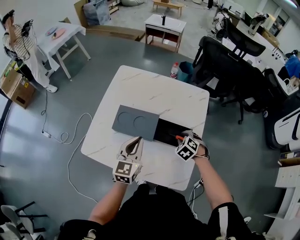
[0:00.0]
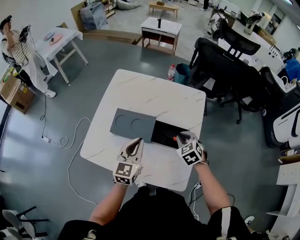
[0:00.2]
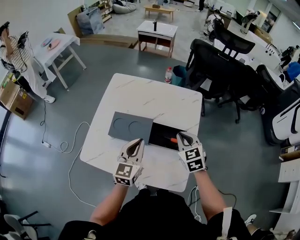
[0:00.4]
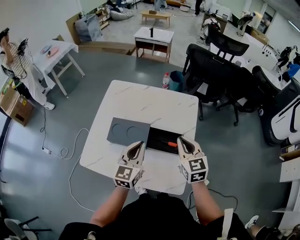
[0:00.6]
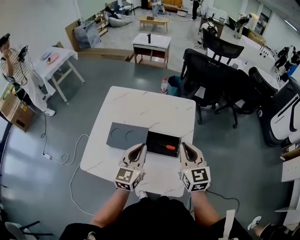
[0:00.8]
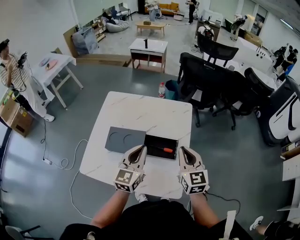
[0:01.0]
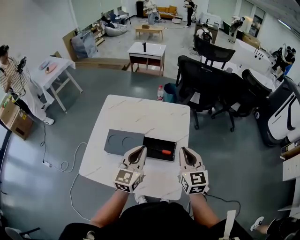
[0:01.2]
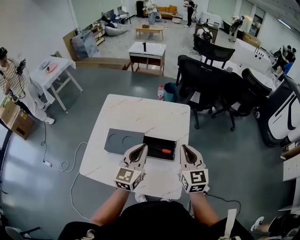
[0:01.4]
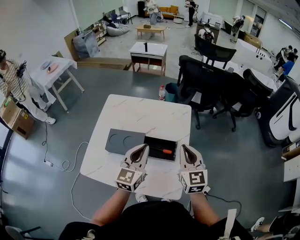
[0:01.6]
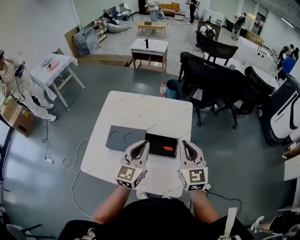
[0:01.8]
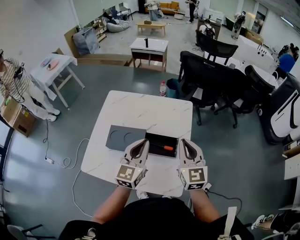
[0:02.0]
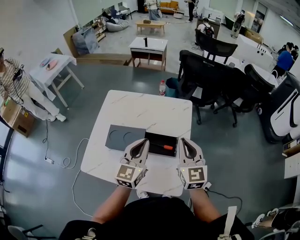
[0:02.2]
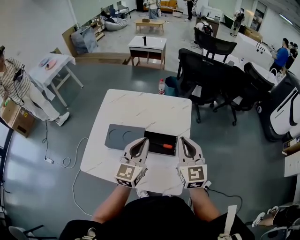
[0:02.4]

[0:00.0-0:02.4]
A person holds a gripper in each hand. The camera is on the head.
0:00.0 to 0:01.2: The right gripper moves upward, approximately 25 cm, tips its fingers upward by approximately 50 degrees, and closes its fingers. Meanwhile the left gripper heads to the right and upward, covering approximately 15 cm.
0:01.2 to 0:02.4: The grippers stay close to where they were, moving slightly.

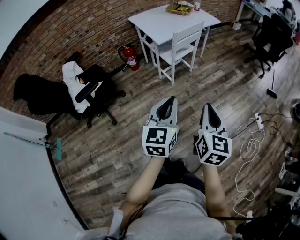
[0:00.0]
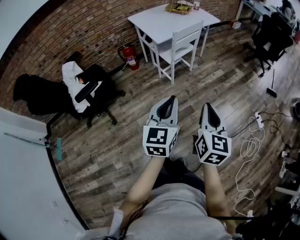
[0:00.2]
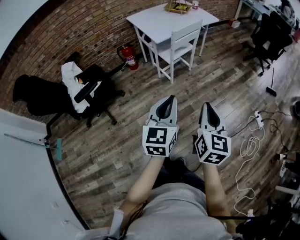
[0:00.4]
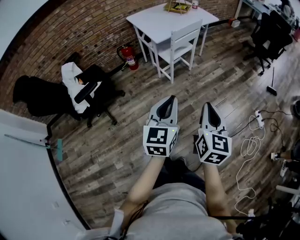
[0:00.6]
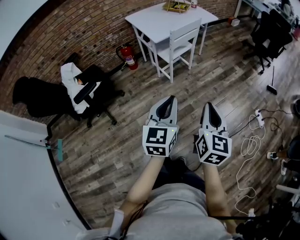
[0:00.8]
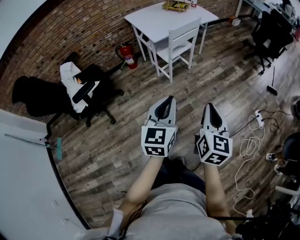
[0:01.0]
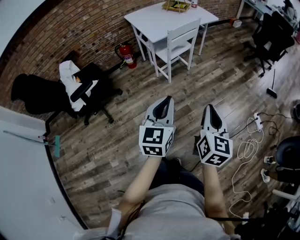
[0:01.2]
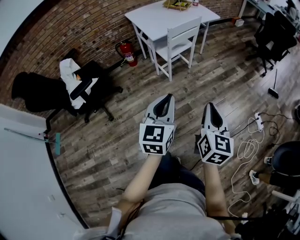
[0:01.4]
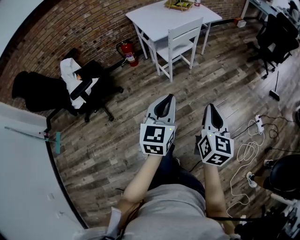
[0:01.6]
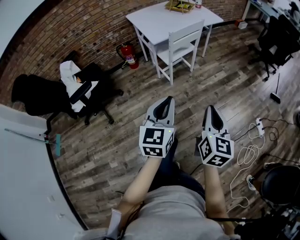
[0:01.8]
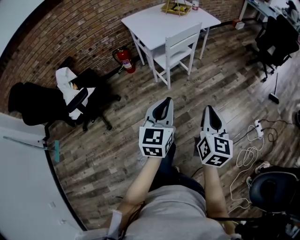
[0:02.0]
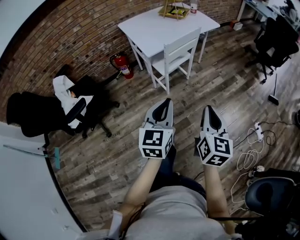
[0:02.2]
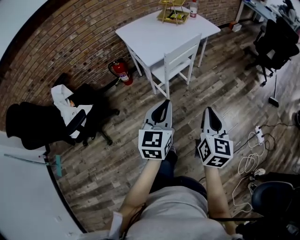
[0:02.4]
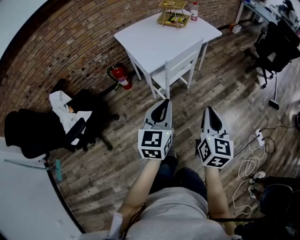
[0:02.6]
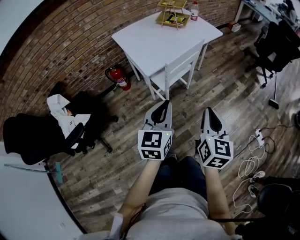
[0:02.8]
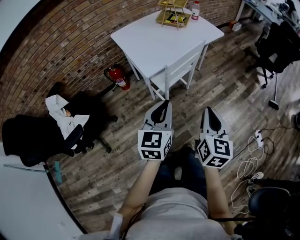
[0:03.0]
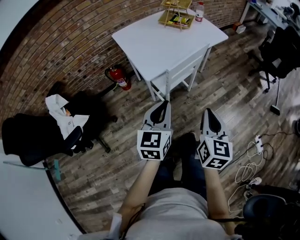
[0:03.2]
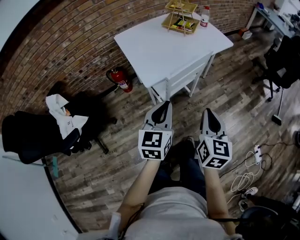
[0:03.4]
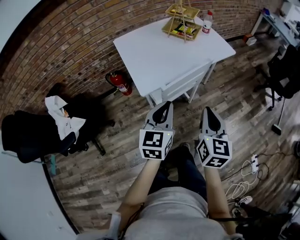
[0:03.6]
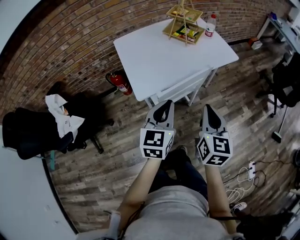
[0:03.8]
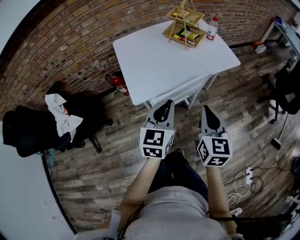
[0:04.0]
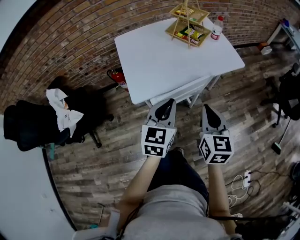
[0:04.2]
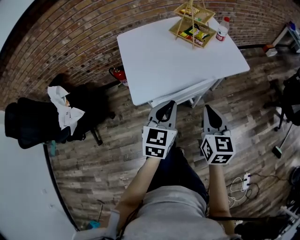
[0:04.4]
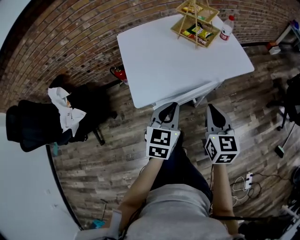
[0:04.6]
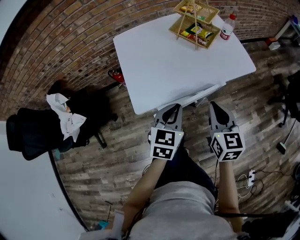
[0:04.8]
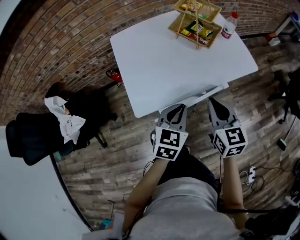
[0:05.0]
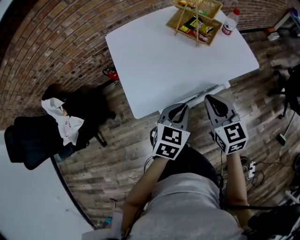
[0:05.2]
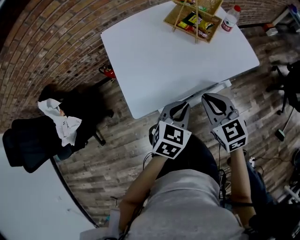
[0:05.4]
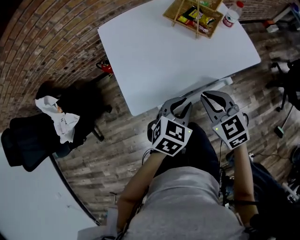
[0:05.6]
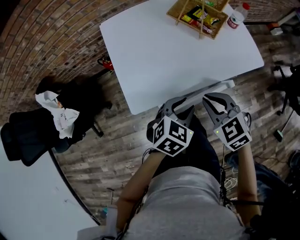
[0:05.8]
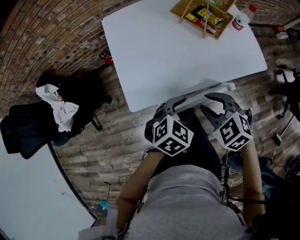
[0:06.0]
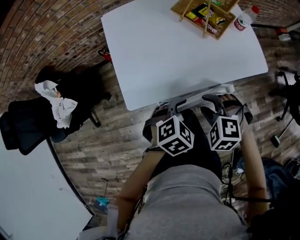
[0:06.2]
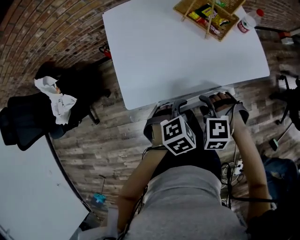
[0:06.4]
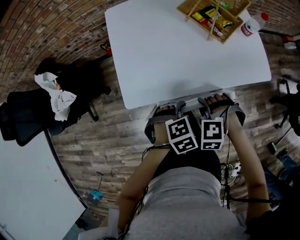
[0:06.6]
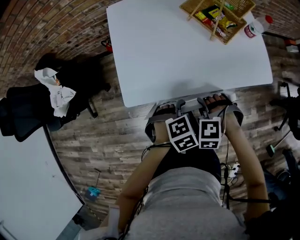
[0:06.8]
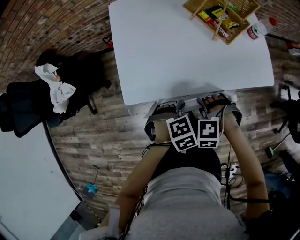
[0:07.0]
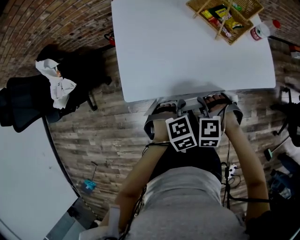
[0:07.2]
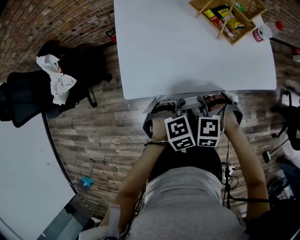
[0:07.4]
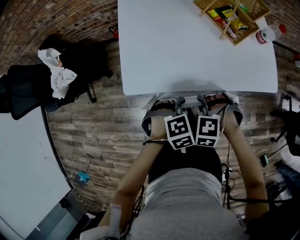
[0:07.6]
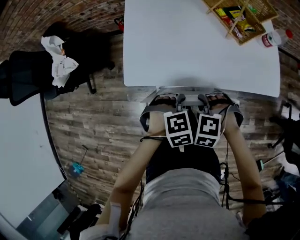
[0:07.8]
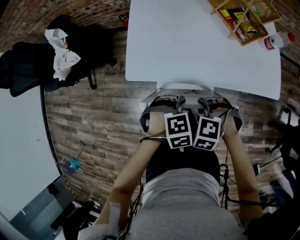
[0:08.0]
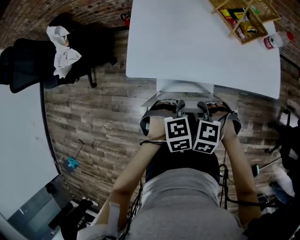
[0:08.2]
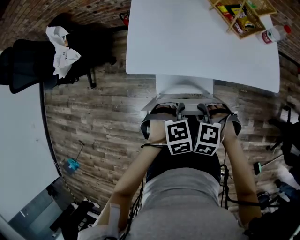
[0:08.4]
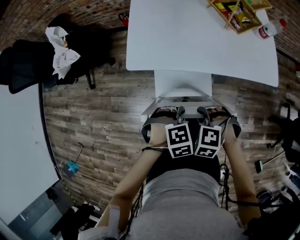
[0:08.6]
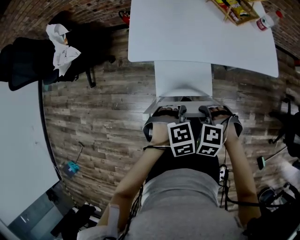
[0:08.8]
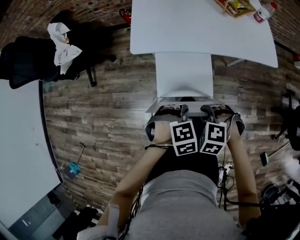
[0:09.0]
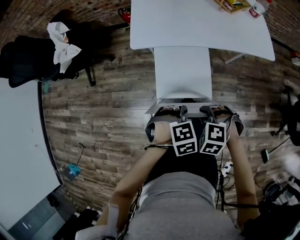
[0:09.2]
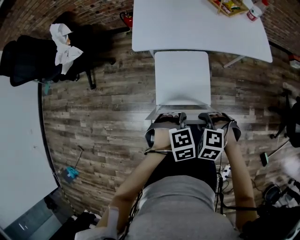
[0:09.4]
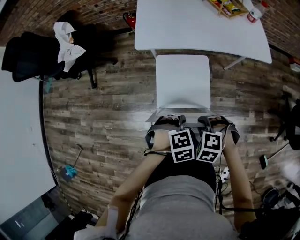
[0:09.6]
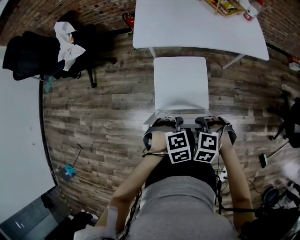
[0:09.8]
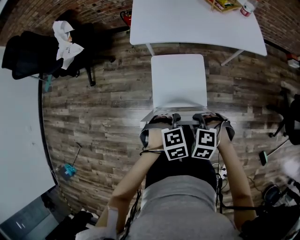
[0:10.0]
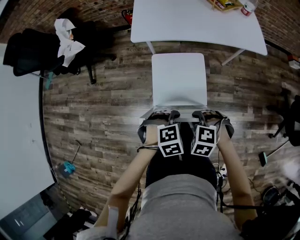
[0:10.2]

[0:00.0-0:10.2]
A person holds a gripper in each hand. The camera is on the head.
0:00.0 to 0:01.4: The grippers both shift to the right by some 5 cm.
0:01.4 to 0:03.0: Both grippers travel together forward, some 30 cm.
0:03.0 to 0:04.4: The left gripper is displaced forward and to the right by about 30 cm. Meanwhile the right gripper travels forward by about 30 cm, and swivels roughly 30 degrees.
0:04.4 to 0:05.8: The right gripper heads forward, downward and to the left, covering about 15 cm, and turns by roughly 50 degrees; the left gripper shifts approximately 15 cm forward and downward, swivels about 30 degrees, and opens.
0:05.8 to 0:07.2: Both grippers move downward, some 10 cm. The left gripper rotates roughly 30 degrees. Meanwhile the right gripper rolls counterclockwise, seen from behind, by roughly 60 degrees, and opens its fingers.
0:07.2 to 0:08.8: The left gripper ends up roughly 20 cm from where it was, while the right gripper moves some 20 cm.
0:08.8 to 0:10.2: The left gripper moves approximately 15 cm; the right gripper changes place by roughly 15 cm.

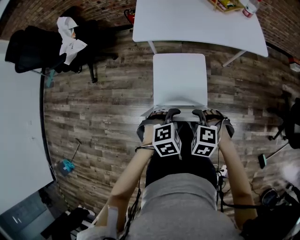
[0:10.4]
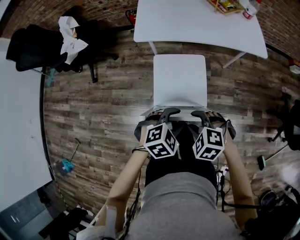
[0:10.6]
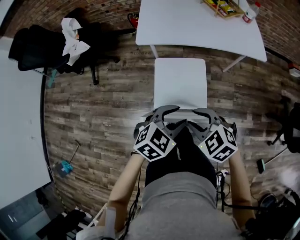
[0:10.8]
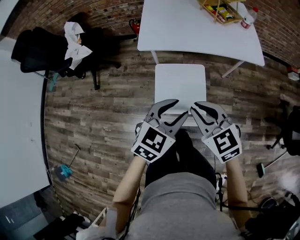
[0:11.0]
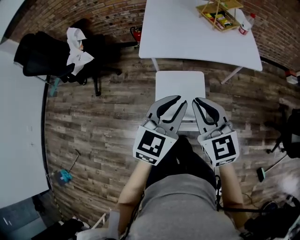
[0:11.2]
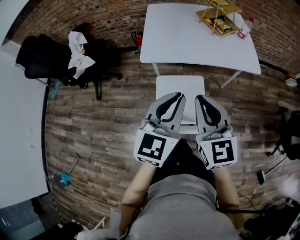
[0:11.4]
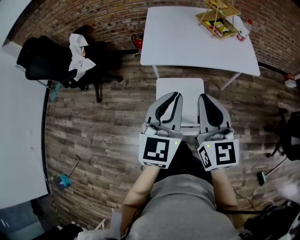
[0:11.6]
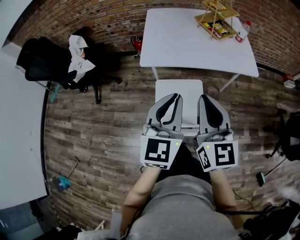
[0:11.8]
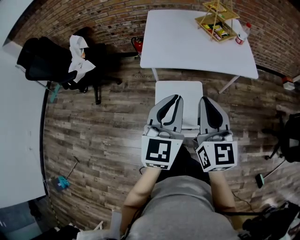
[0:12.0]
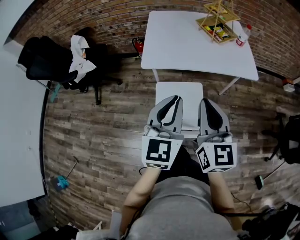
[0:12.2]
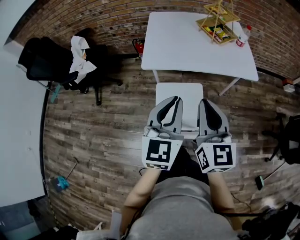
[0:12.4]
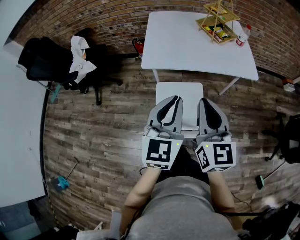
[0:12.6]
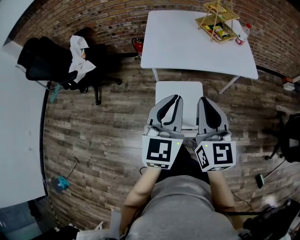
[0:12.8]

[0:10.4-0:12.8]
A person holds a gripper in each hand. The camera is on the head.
0:10.4 to 0:11.6: The two grippers go about 30 cm upward and forward. The right gripper tips its fingers upward by about 70 degrees, and closes its fingers, while the left gripper tilts its fingers approximately 60 degrees upward, and closes up.
0:11.6 to 0:12.8: Both grippers stay put.

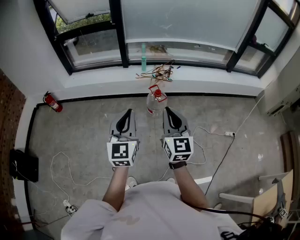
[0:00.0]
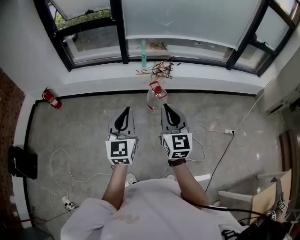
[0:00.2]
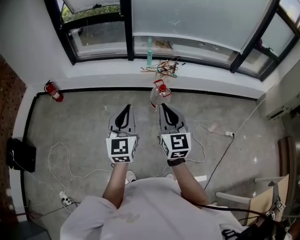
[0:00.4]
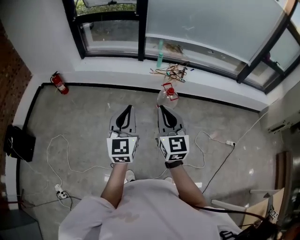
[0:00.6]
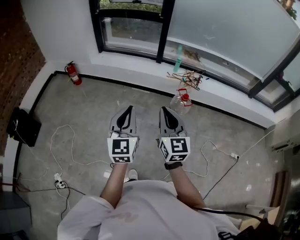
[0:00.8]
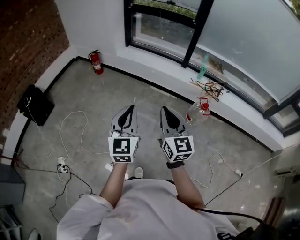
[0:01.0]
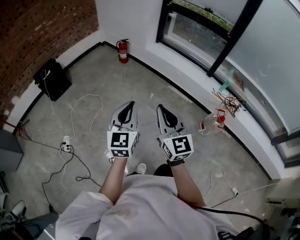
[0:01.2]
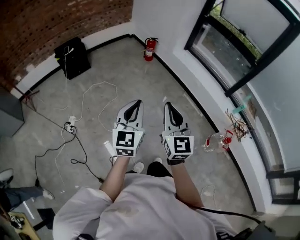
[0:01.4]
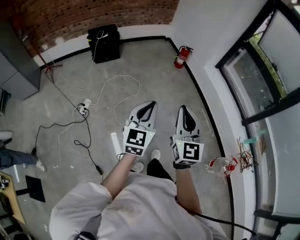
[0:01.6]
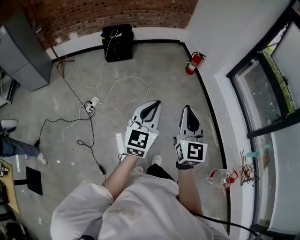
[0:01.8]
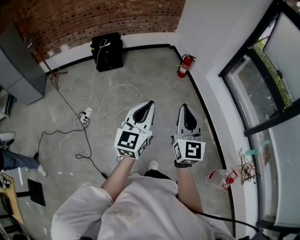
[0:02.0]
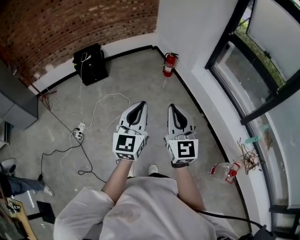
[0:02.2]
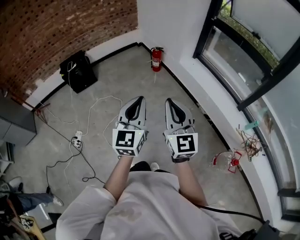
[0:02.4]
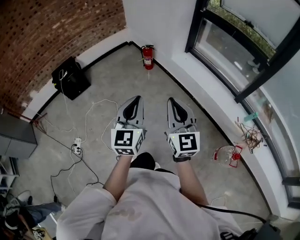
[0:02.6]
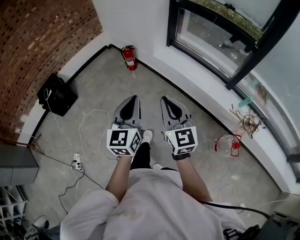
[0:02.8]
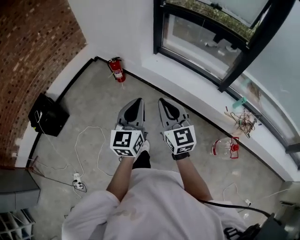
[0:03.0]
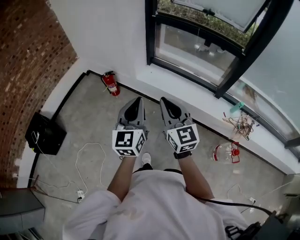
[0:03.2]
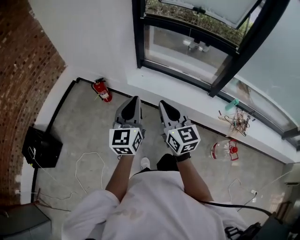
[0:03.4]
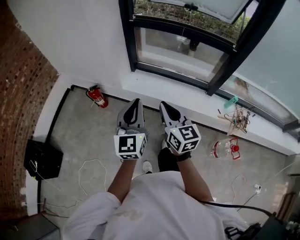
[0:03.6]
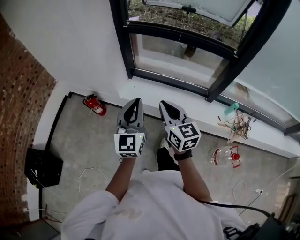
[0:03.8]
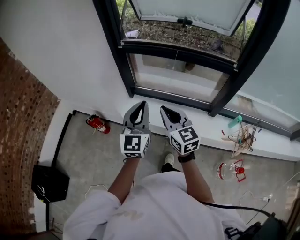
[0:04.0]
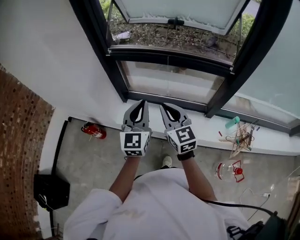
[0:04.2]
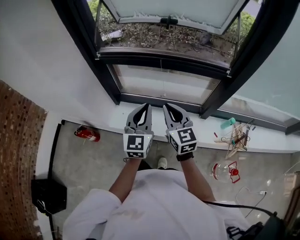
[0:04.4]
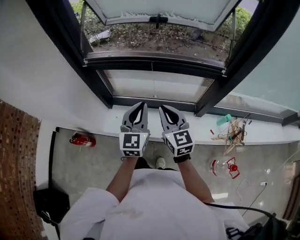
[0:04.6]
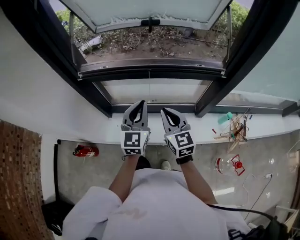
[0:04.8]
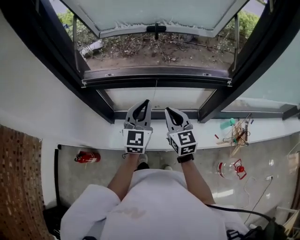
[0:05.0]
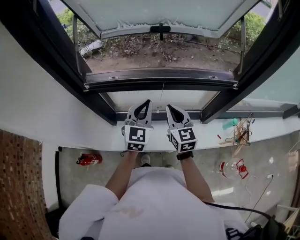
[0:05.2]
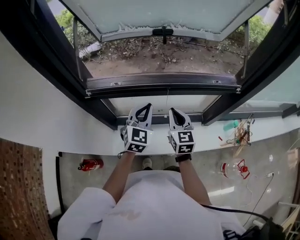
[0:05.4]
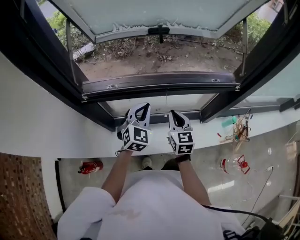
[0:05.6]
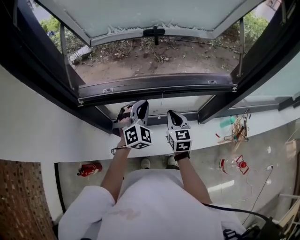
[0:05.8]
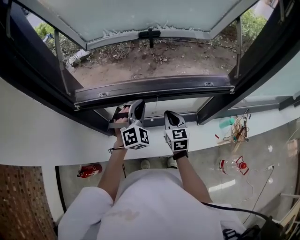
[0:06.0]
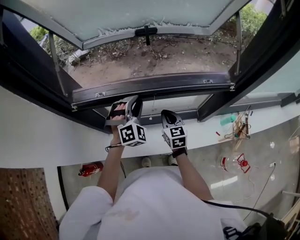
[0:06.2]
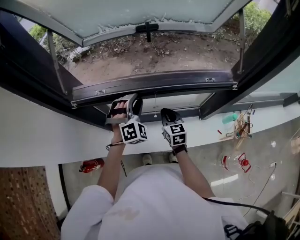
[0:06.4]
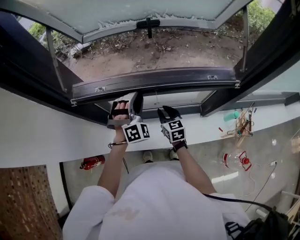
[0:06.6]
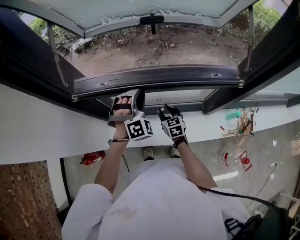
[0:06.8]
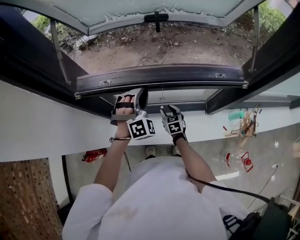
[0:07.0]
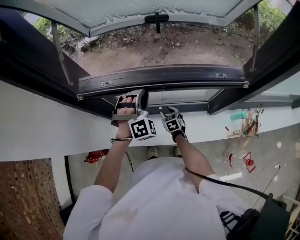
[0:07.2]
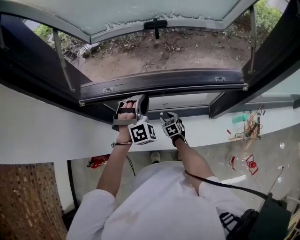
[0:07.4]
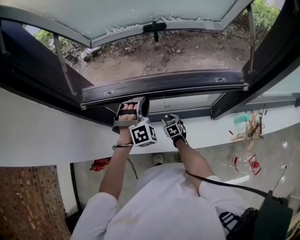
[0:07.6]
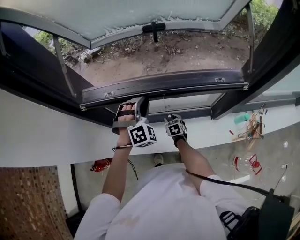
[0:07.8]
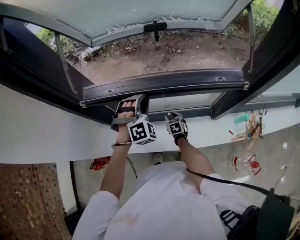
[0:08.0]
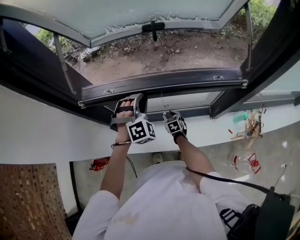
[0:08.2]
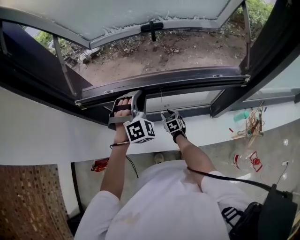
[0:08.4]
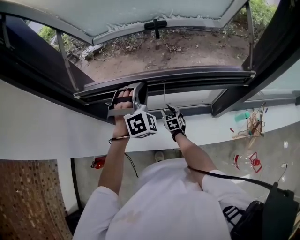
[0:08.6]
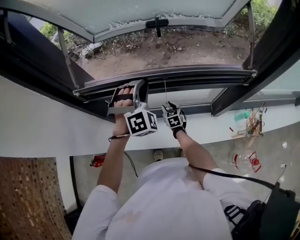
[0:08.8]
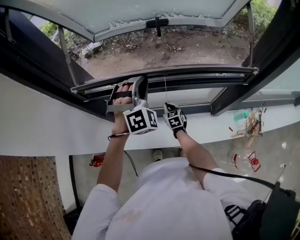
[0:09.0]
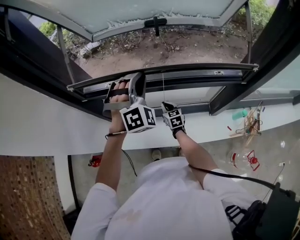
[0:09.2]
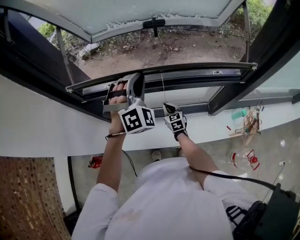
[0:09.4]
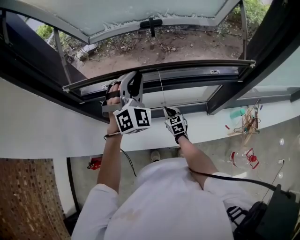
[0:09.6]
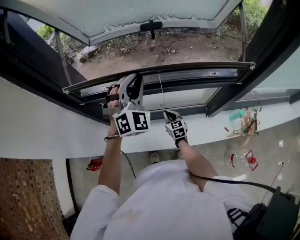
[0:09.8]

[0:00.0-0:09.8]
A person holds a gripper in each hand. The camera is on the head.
0:00.0 to 0:01.4: The pair of grippers is taken approximately 50 cm. The left gripper swivels approximately 50 degrees. The right gripper turns by roughly 60 degrees.
0:01.4 to 0:02.8: The grippers both shift forward and to the right by roughly 40 cm.
0:02.8 to 0:04.2: Both grippers are carried forward, roughly 60 cm. The left gripper rotates some 30 degrees. The right gripper swivels some 20 degrees.
0:04.2 to 0:05.6: The right gripper shifts by about 30 cm, and turns by roughly 30 degrees; the left gripper shifts by approximately 35 cm, and changes its angle by about 40 degrees.
0:05.6 to 0:07.0: The right gripper goes roughly 20 cm downward, changes its angle by roughly 20 degrees, and opens its fingers; the left gripper shifts some 5 cm forward, changes its angle by roughly 40 degrees, and opens up.
0:07.0 to 0:08.4: The right gripper ends up some 5 cm from where it was.
0:08.4 to 0:09.8: Both grippers travel together upward, about 10 cm. The right gripper closes. The left gripper swivels roughly 20 degrees.
